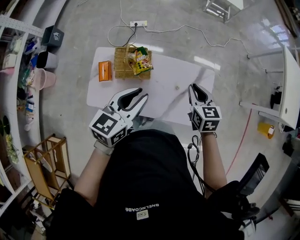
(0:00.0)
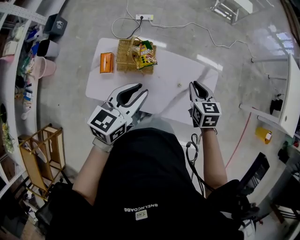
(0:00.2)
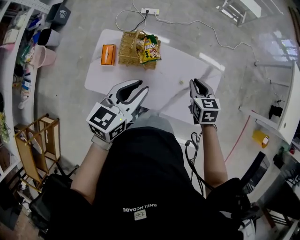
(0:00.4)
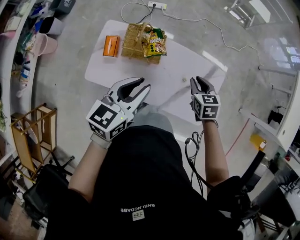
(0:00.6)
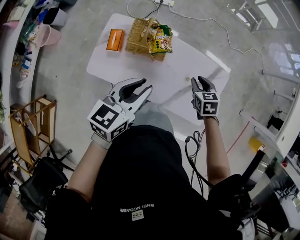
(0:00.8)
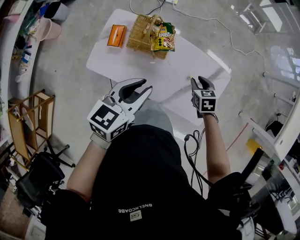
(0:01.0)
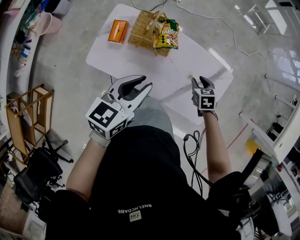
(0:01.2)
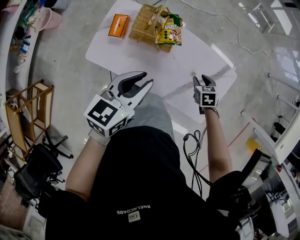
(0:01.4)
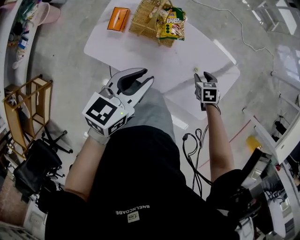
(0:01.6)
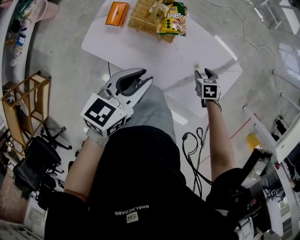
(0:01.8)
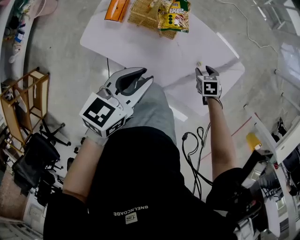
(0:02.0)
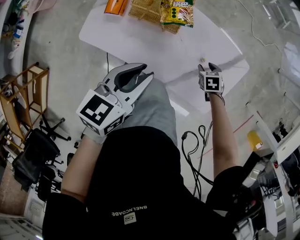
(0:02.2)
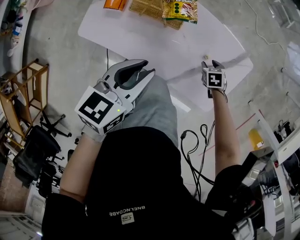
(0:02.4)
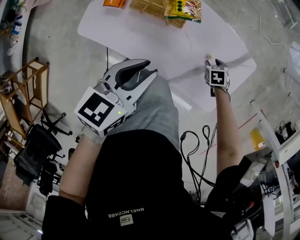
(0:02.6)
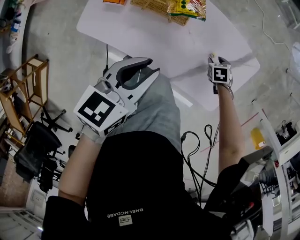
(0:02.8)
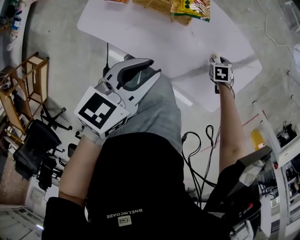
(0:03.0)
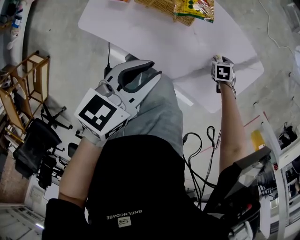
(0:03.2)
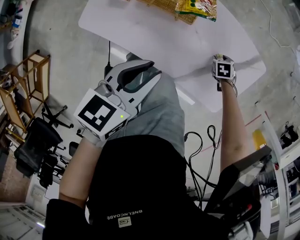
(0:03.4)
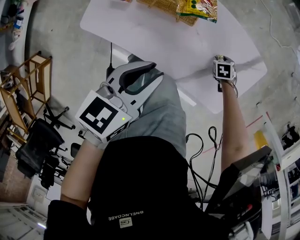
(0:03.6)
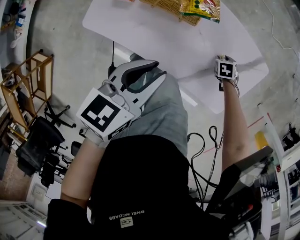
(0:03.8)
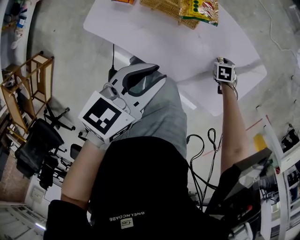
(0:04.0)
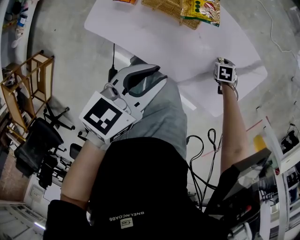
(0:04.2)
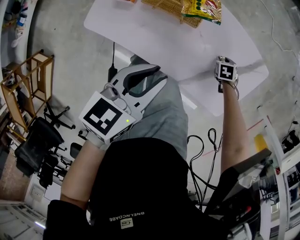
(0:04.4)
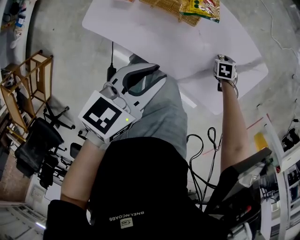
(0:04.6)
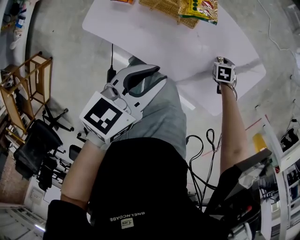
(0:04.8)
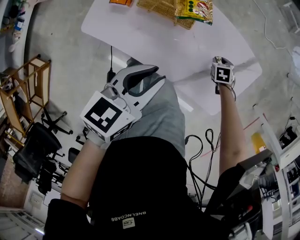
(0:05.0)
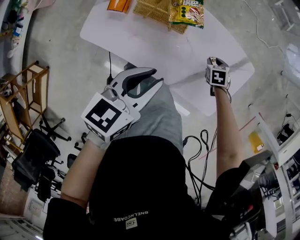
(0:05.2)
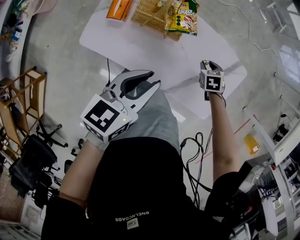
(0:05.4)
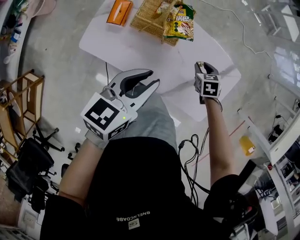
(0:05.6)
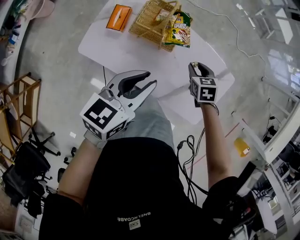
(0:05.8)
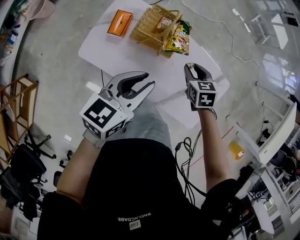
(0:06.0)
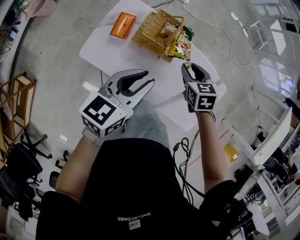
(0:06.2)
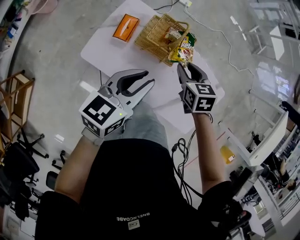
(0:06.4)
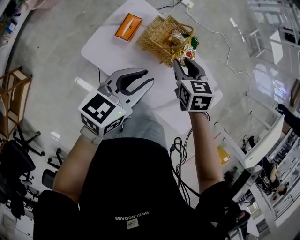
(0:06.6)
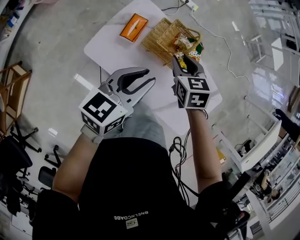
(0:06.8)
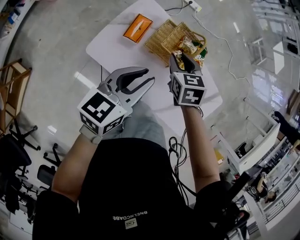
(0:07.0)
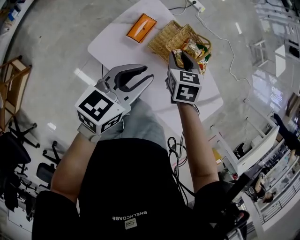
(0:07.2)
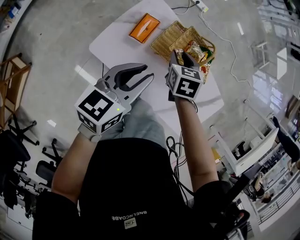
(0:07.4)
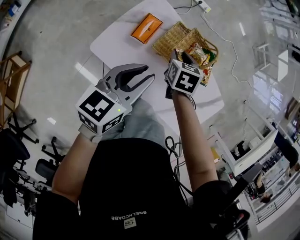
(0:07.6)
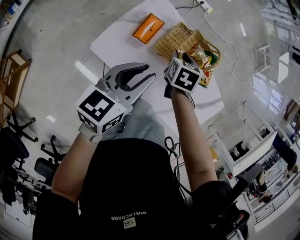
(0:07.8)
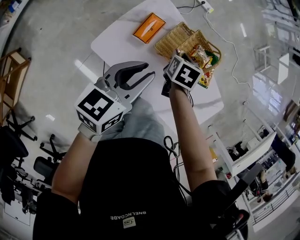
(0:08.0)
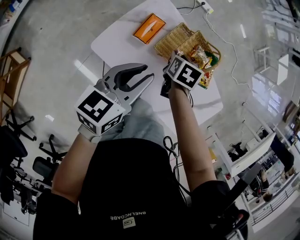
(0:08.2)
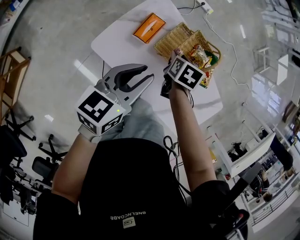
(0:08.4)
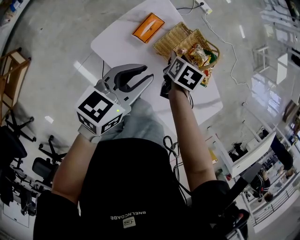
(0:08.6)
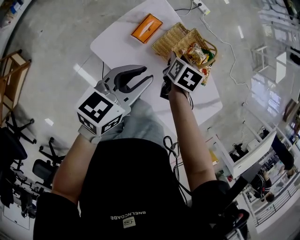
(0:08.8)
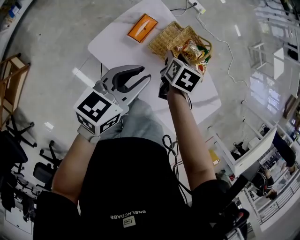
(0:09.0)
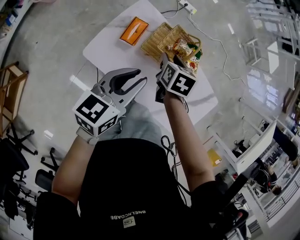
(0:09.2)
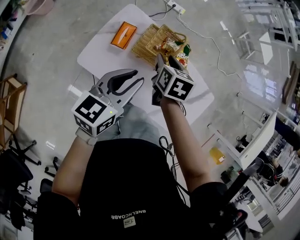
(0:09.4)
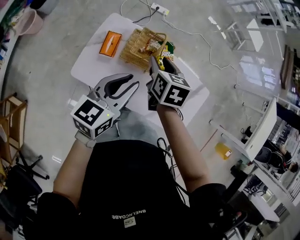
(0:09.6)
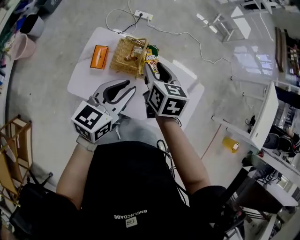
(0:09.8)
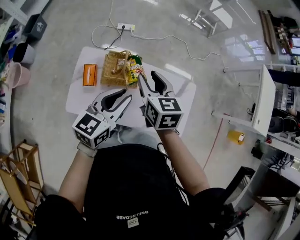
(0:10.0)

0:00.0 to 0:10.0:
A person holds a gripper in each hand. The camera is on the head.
0:00.0 to 0:01.4: The right gripper goes about 25 cm downward, and swivels roughly 30 degrees; the left gripper shifts about 10 cm downward and to the left.
0:01.4 to 0:02.8: The left gripper goes approximately 10 cm downward. Meanwhile the right gripper moves downward, roughly 20 cm.
0:02.8 to 0:04.2: There are only small adjustments of the grippers.
0:04.2 to 0:05.8: The right gripper travels upward by approximately 20 cm, and swivels some 20 degrees; the left gripper moves upward, some 5 cm.
0:05.8 to 0:07.2: The right gripper shifts some 25 cm to the left. The left gripper shifts approximately 15 cm to the left.
0:07.2 to 0:08.6: The right gripper is displaced downward by about 5 cm, and rotates some 30 degrees.
0:08.6 to 0:10.0: The right gripper goes approximately 30 cm upward and to the right, and tips its fingers upward by some 30 degrees, while the left gripper heads to the right and upward, covering approximately 20 cm, and turns by roughly 30 degrees.

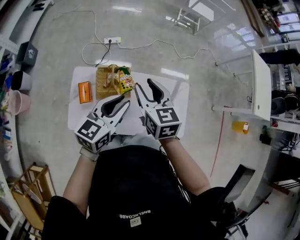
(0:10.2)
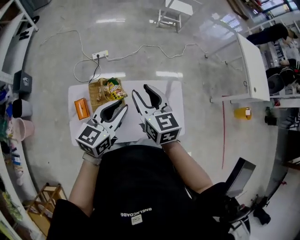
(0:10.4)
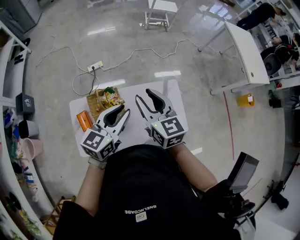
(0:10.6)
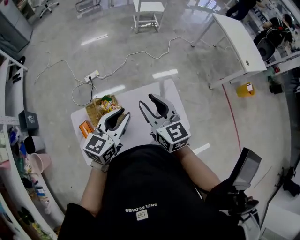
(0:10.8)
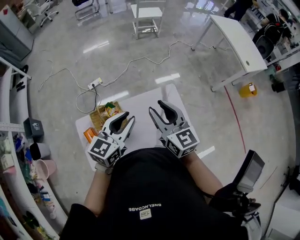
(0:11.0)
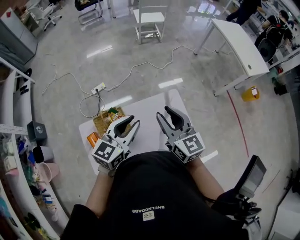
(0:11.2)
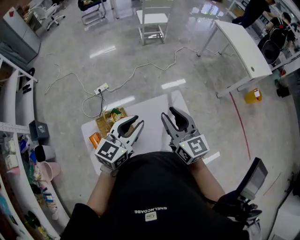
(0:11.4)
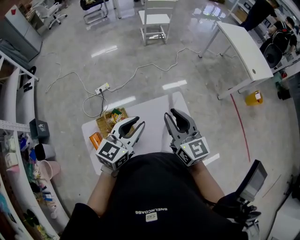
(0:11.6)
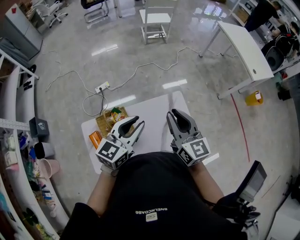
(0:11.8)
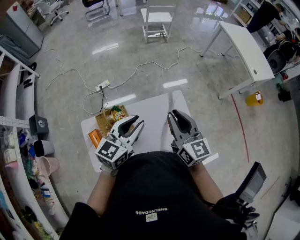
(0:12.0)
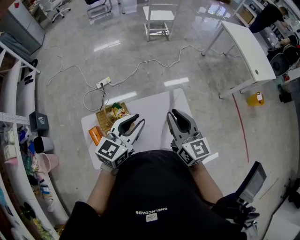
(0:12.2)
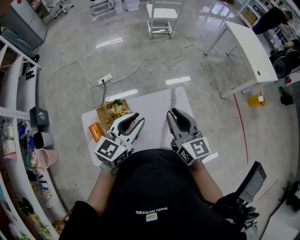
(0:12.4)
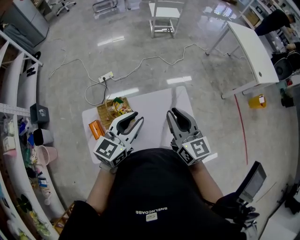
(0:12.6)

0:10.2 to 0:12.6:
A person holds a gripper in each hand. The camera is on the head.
0:10.2 to 0:11.4: The right gripper travels to the right and upward by some 25 cm, and changes its angle by some 30 degrees, while the left gripper goes roughly 20 cm to the right, upward and forward, and changes its angle by some 30 degrees.
0:11.4 to 0:12.6: The grippers move only a little.

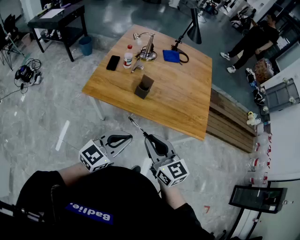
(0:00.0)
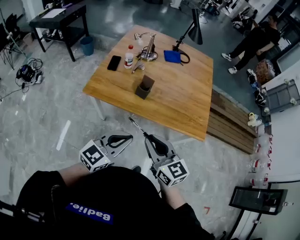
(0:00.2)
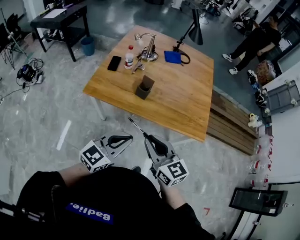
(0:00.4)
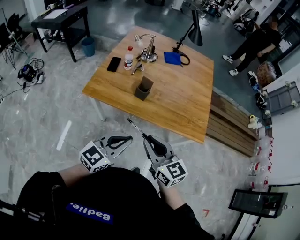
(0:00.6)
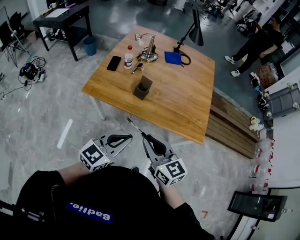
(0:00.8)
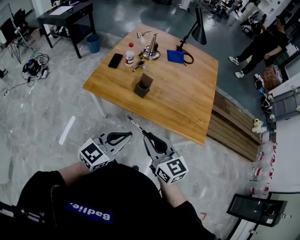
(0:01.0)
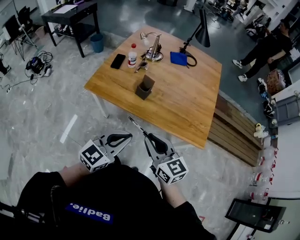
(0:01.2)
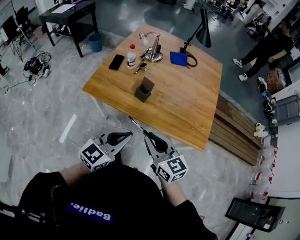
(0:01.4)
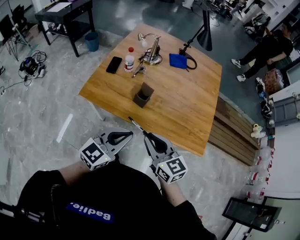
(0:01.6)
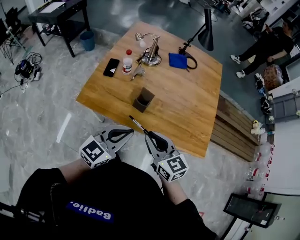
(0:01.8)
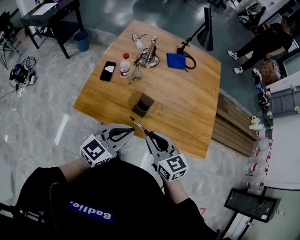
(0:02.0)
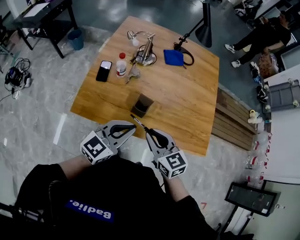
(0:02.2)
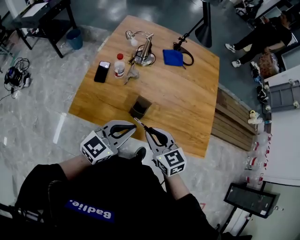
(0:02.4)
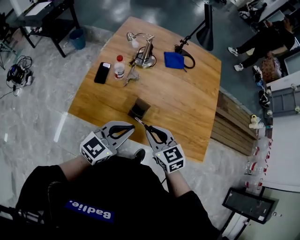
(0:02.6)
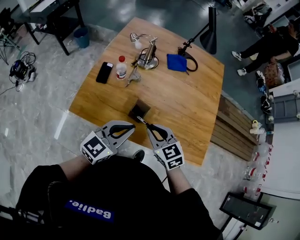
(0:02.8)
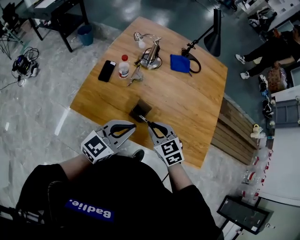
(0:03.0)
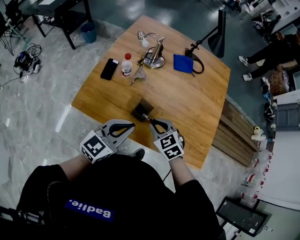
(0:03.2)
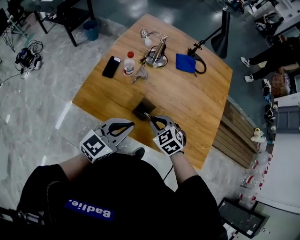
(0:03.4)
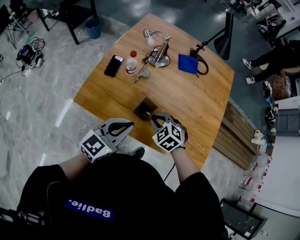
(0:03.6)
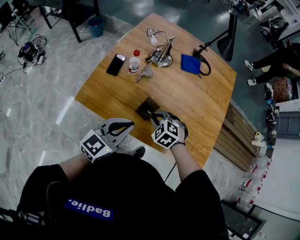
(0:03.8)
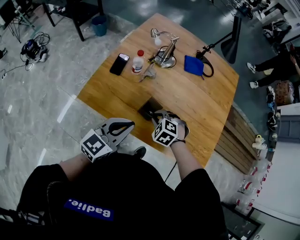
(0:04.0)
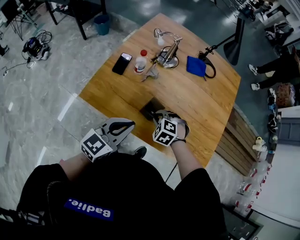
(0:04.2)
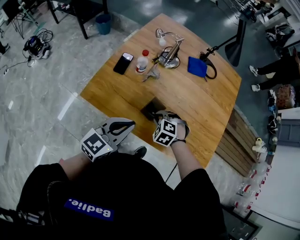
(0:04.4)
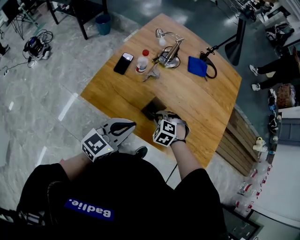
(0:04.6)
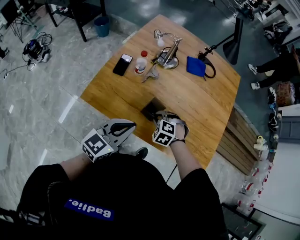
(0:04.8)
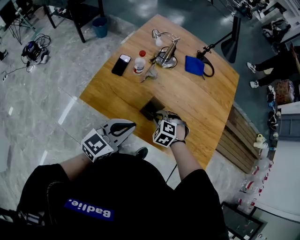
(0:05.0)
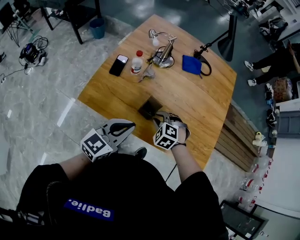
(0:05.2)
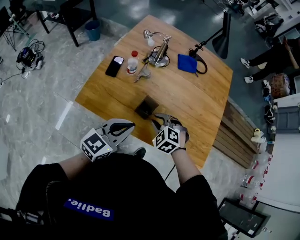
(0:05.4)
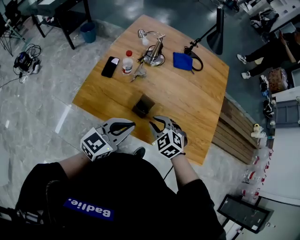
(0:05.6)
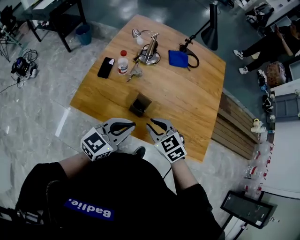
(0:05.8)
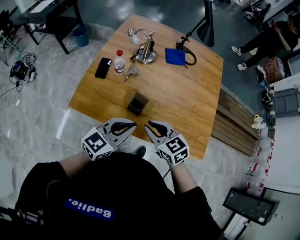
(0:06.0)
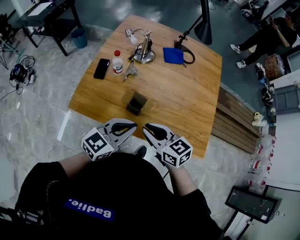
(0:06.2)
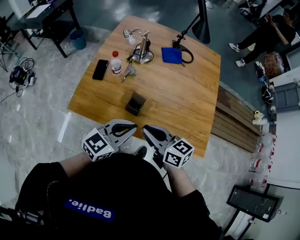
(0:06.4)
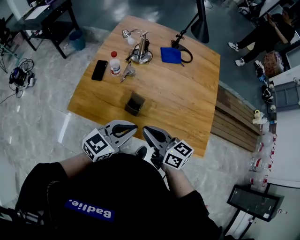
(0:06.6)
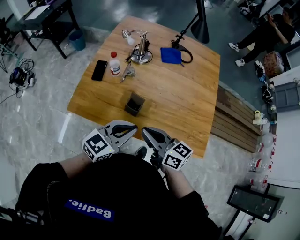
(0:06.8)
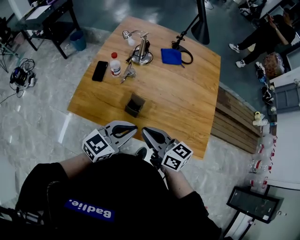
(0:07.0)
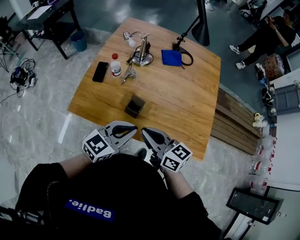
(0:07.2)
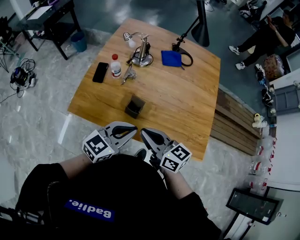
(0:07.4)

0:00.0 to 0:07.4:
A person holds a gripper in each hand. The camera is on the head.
0:00.0 to 0:01.4: The grippers both shift forward by some 5 cm.
0:01.4 to 0:03.0: The two grippers go about 25 cm forward. The right gripper changes its angle by some 30 degrees.
0:03.0 to 0:04.4: The left gripper is displaced to the left by some 5 cm. The right gripper shifts roughly 10 cm downward, and rolls counterclockwise, seen from behind, by some 40 degrees.
0:04.4 to 0:06.0: The right gripper shifts roughly 15 cm upward and backward, and angles its fingers upward, by some 40 degrees. The left gripper shifts approximately 5 cm to the right.
0:06.0 to 0:07.4: The right gripper changes place by roughly 5 cm, and changes its angle by about 30 degrees.

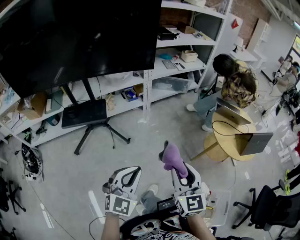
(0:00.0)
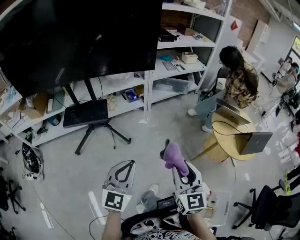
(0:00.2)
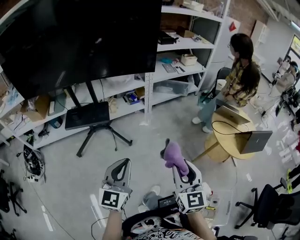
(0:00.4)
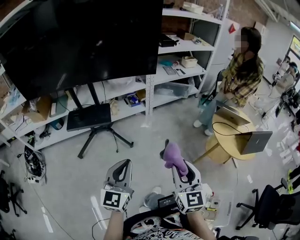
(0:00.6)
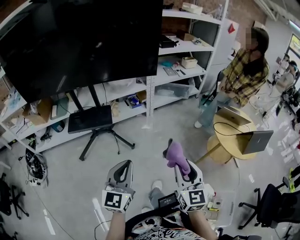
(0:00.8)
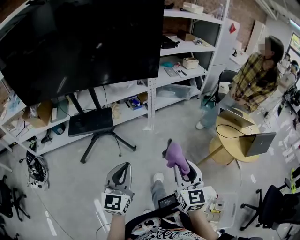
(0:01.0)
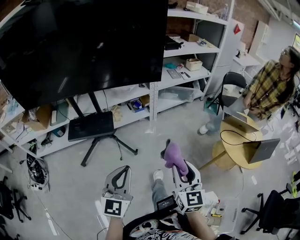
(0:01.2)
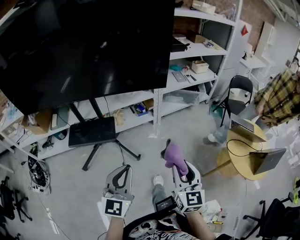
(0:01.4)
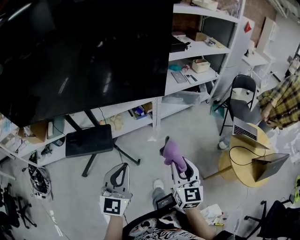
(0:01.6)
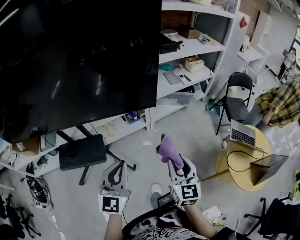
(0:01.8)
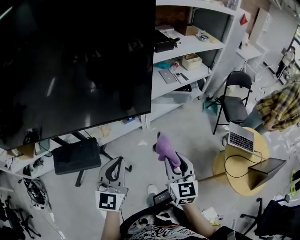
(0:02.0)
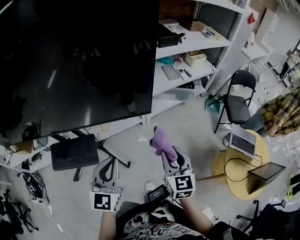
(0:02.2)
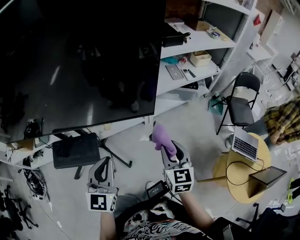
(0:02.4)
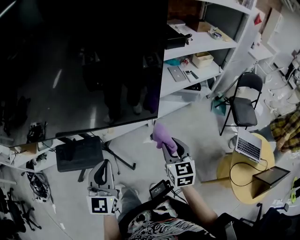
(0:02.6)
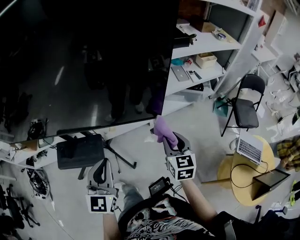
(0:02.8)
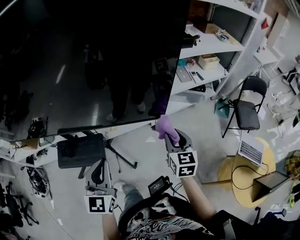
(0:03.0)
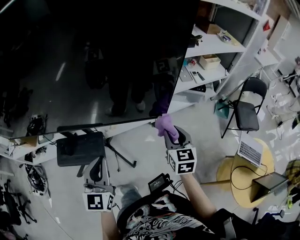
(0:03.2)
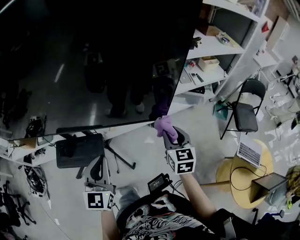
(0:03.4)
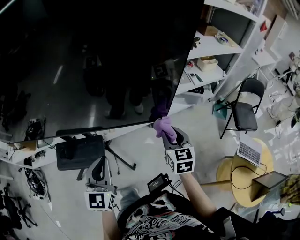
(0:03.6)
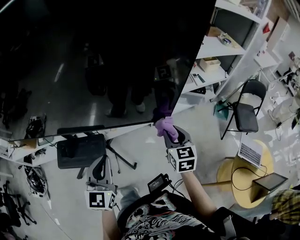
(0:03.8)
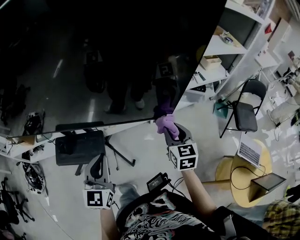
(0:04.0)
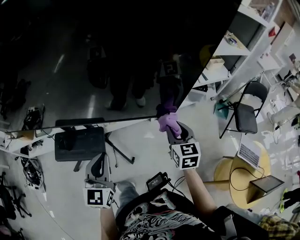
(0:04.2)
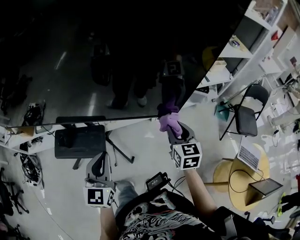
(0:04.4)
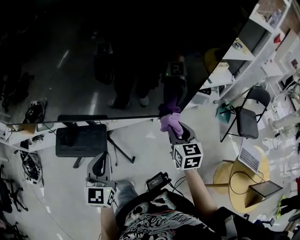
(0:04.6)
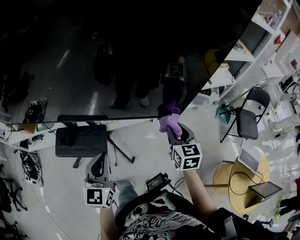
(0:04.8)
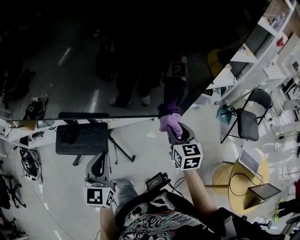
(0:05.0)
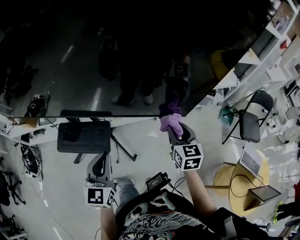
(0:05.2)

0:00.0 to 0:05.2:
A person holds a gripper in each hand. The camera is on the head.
0:00.0 to 0:01.8: Both grippers are carried forward, about 40 cm. The left gripper turns by approximately 30 degrees.
0:01.8 to 0:03.4: The right gripper goes roughly 25 cm forward; the left gripper goes approximately 15 cm forward and to the left.
0:03.4 to 0:05.2: The grippers both shift to the left by roughly 5 cm.
